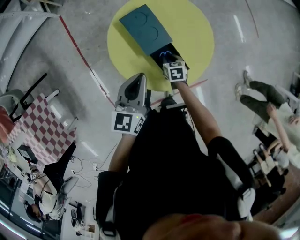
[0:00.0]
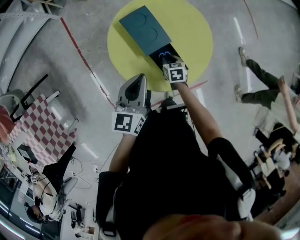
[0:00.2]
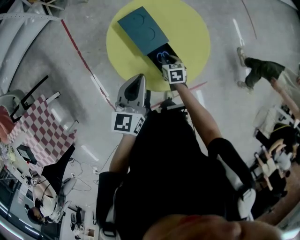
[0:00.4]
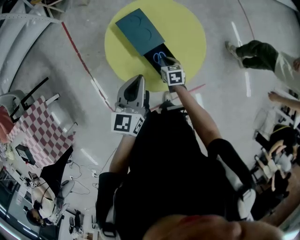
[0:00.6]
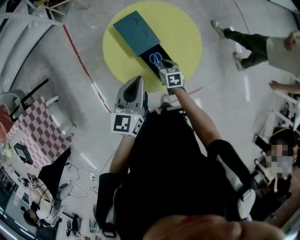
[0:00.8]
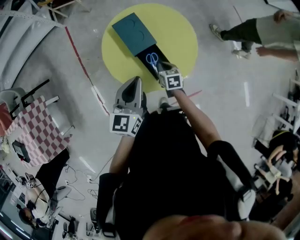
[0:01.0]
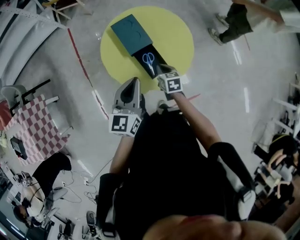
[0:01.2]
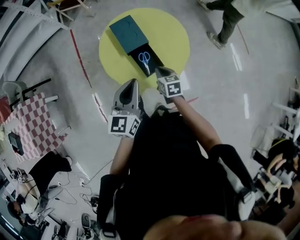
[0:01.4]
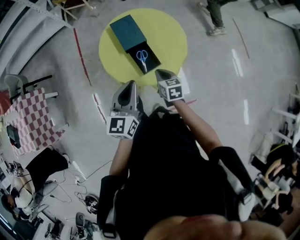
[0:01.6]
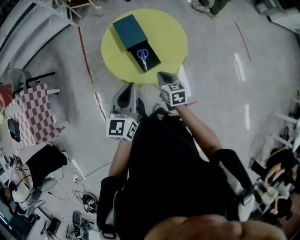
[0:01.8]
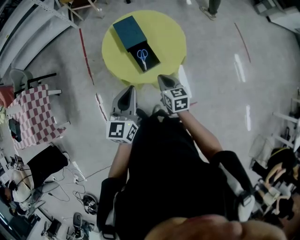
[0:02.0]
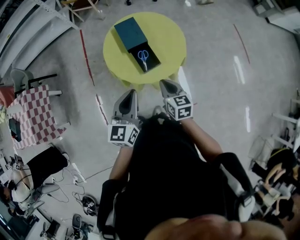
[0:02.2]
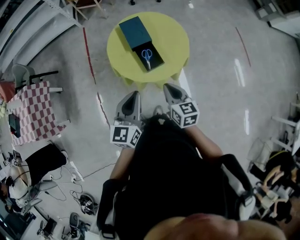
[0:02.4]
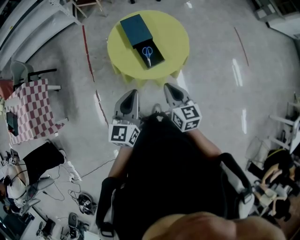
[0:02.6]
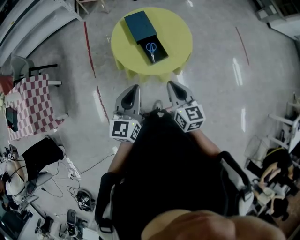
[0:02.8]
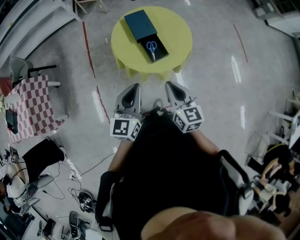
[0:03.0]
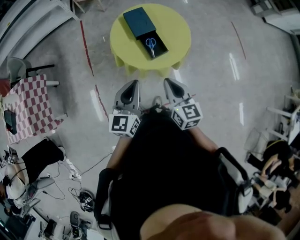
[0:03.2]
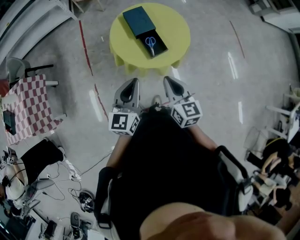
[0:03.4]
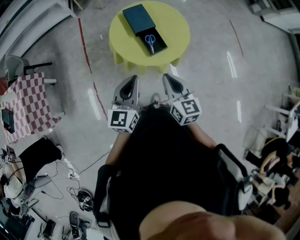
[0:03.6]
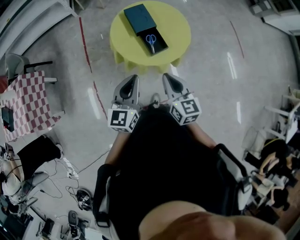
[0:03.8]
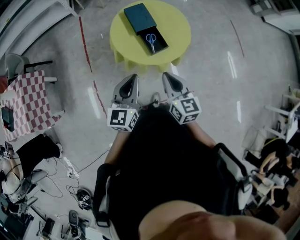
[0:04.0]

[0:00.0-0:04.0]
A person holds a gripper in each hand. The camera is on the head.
0.0 to 1.4 s: The left gripper moves backward, to the right and upward, about 15 cm. Meanwhile the right gripper goes approximately 20 cm upward, backward and to the right.
1.4 to 2.6 s: The right gripper heads upward and backward, covering approximately 25 cm, and swivels roughly 20 degrees, while the left gripper is displaced backward by roughly 15 cm.
2.6 to 4.0 s: The right gripper travels to the left by about 5 cm.

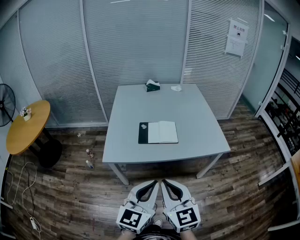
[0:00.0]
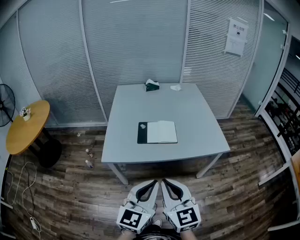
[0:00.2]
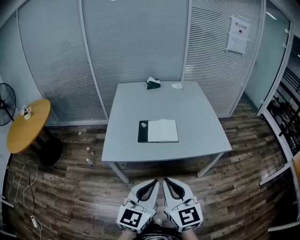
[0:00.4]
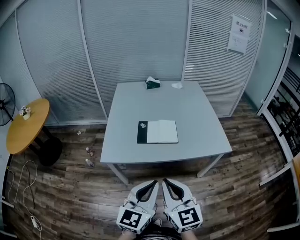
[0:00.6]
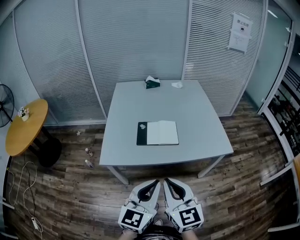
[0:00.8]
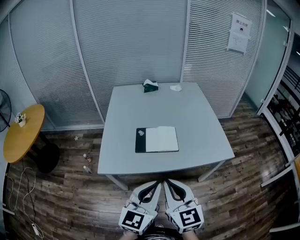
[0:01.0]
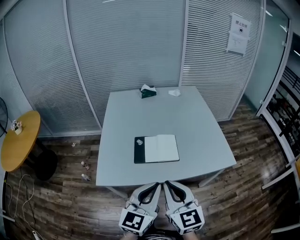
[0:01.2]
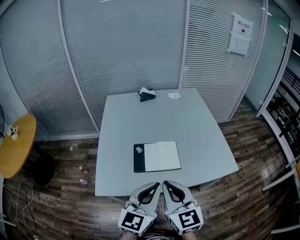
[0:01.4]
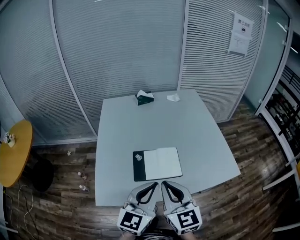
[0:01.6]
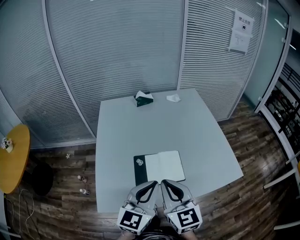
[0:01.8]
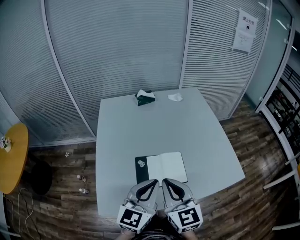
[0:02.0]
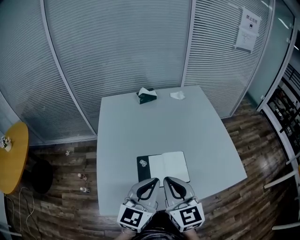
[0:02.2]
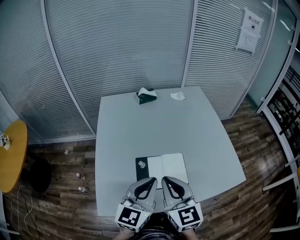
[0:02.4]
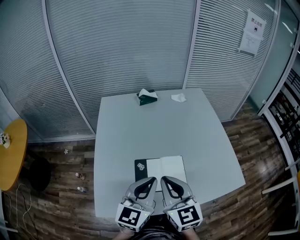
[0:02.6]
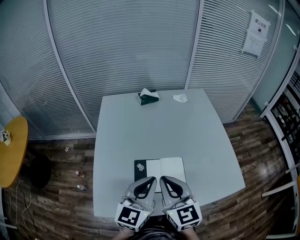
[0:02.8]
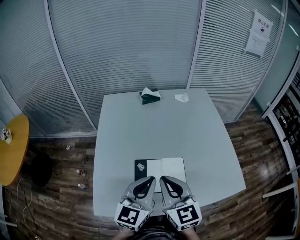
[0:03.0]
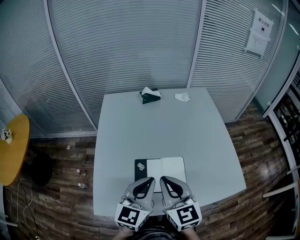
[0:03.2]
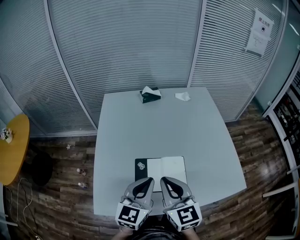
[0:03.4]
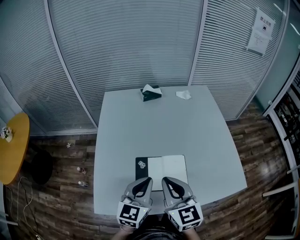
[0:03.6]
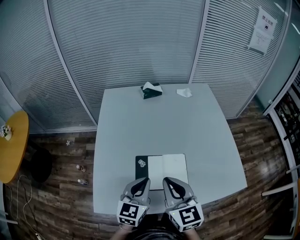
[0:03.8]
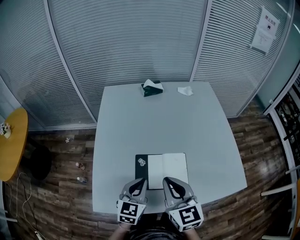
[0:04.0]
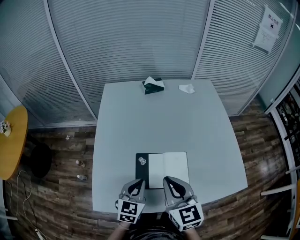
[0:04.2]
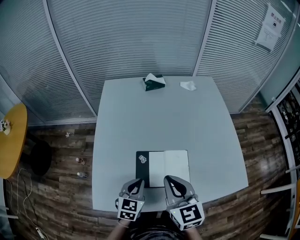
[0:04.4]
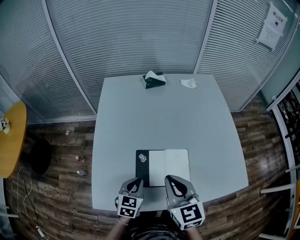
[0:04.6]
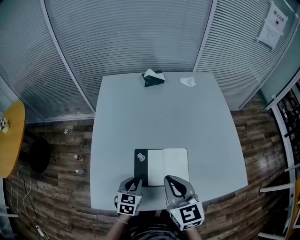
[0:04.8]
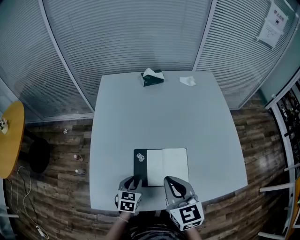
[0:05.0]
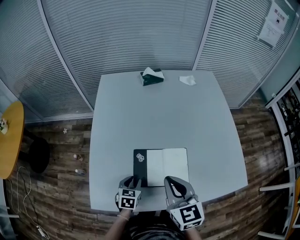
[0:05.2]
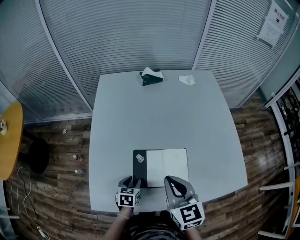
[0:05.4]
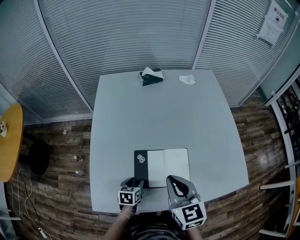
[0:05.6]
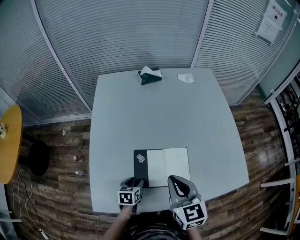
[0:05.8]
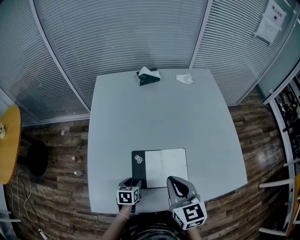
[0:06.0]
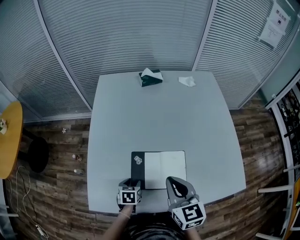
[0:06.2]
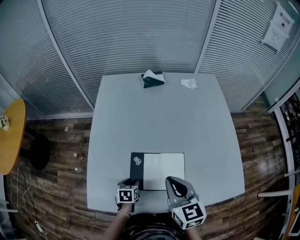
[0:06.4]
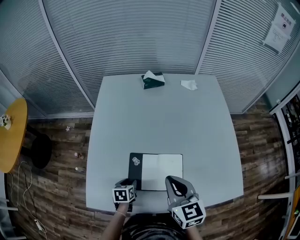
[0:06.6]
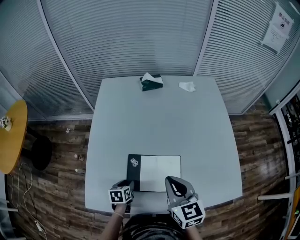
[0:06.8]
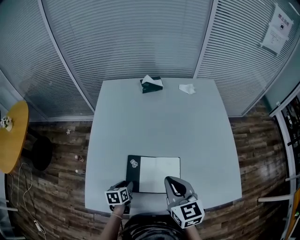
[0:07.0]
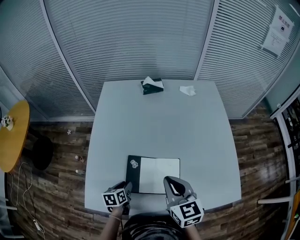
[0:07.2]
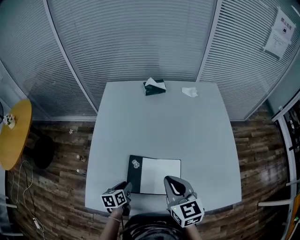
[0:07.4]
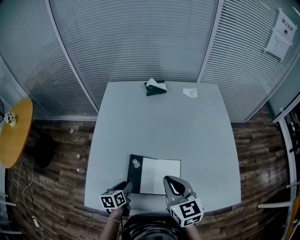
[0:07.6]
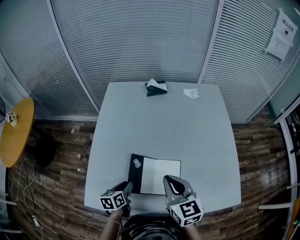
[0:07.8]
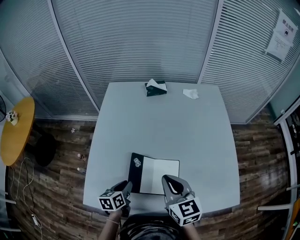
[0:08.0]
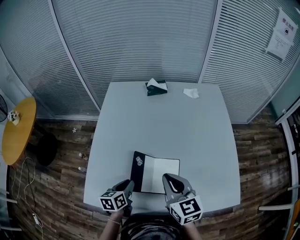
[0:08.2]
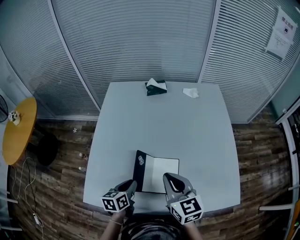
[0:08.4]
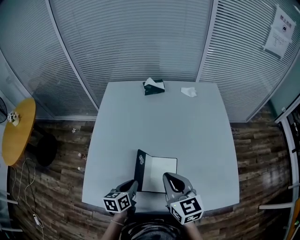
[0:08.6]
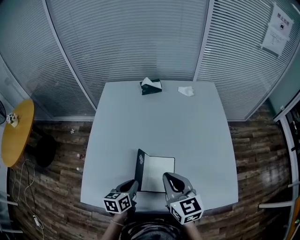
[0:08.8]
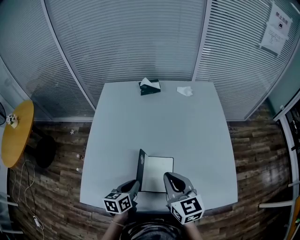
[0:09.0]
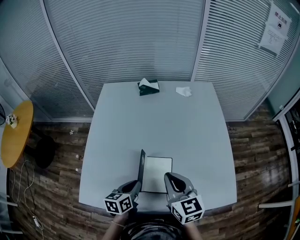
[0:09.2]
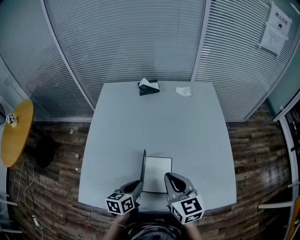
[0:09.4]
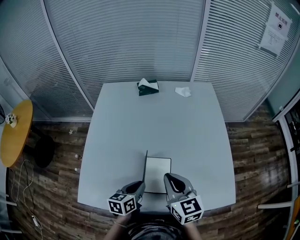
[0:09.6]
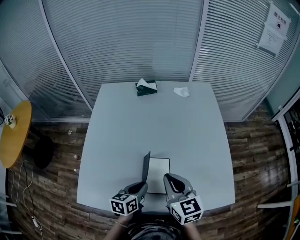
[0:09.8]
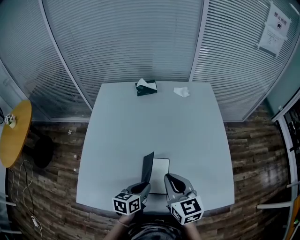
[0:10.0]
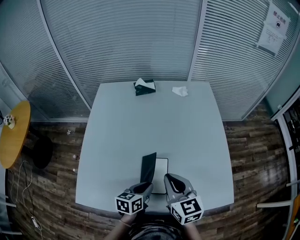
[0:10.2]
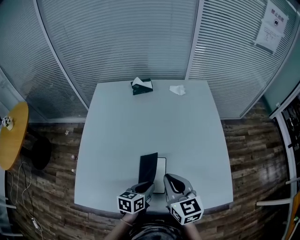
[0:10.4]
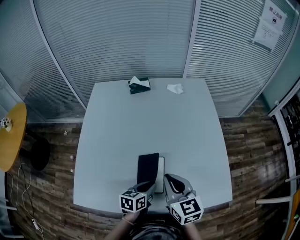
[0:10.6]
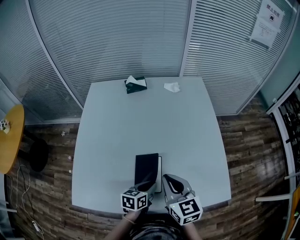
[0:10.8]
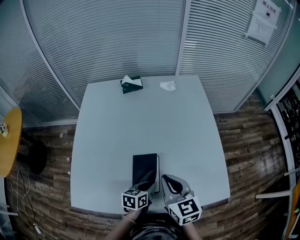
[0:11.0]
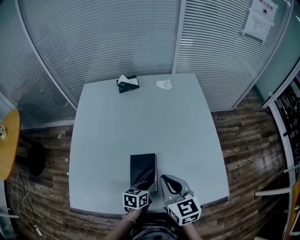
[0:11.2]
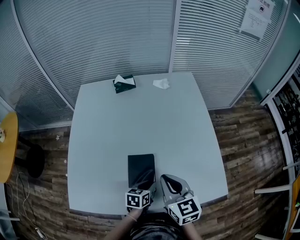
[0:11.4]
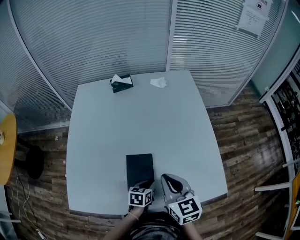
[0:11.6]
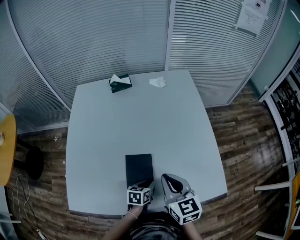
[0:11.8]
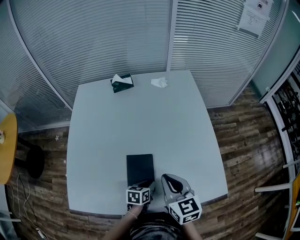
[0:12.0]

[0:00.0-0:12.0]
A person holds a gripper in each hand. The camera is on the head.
0.0 to 1.6 s: The grippers both shift forward by approximately 30 cm.
1.6 to 3.0 s: The grippers both shift forward by approximately 15 cm.
3.0 to 4.4 s: The left gripper heads downward, covering some 20 cm, and rotates about 30 degrees.
4.4 to 6.0 s: The left gripper shifts roughly 15 cm downward, changes its angle by some 30 degrees, and opens.
6.0 to 7.6 s: The left gripper moves upward, roughly 5 cm, and rotates approximately 20 degrees, while the right gripper ends up about 5 cm from where it was.
7.6 to 9.0 s: The left gripper travels to the right and upward by some 10 cm, and closes up. Meanwhile the right gripper goes approximately 5 cm to the right.
9.0 to 10.4 s: The left gripper travels to the right by some 10 cm.
10.4 to 12.0 s: The left gripper shifts approximately 10 cm downward and to the right, while the right gripper travels to the right by about 5 cm.

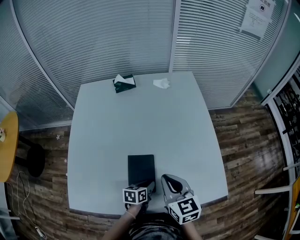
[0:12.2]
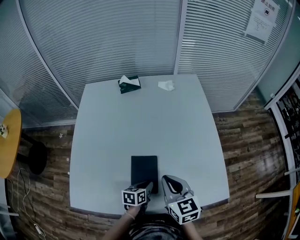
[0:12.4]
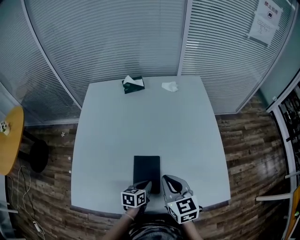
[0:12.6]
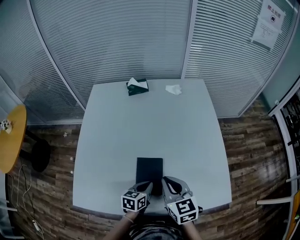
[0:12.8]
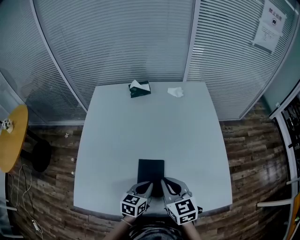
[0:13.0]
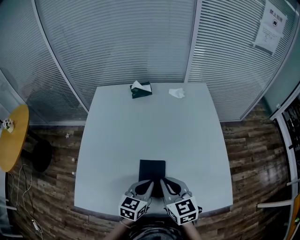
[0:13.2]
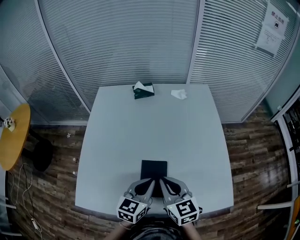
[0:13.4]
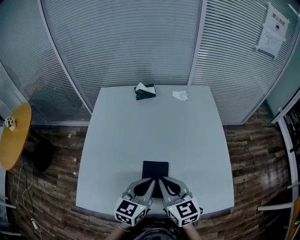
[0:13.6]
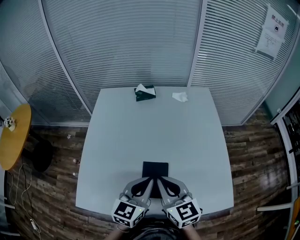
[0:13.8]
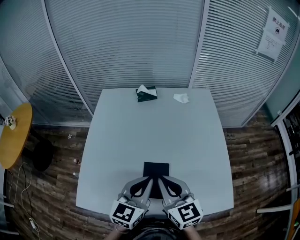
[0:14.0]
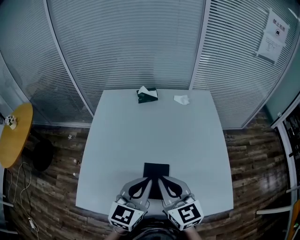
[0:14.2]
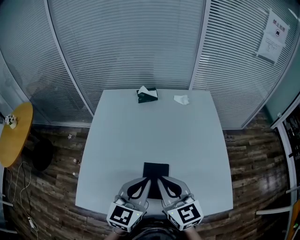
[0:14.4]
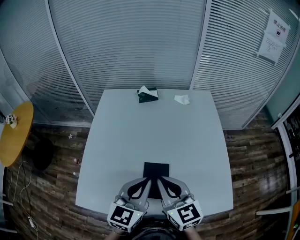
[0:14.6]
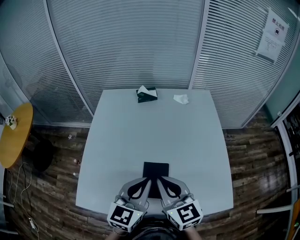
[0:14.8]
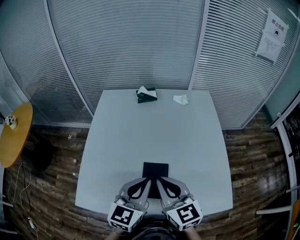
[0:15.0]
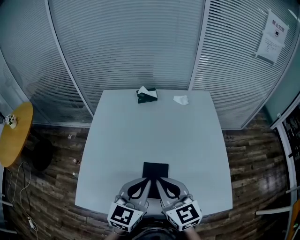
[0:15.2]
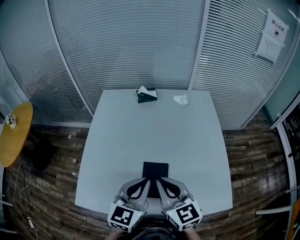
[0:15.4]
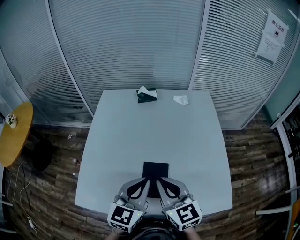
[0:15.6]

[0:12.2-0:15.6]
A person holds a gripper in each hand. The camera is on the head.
12.2 to 13.8 s: The right gripper goes roughly 10 cm to the left and upward; the left gripper heads upward, covering some 25 cm, and changes its angle by approximately 40 degrees.
13.8 to 15.6 s: There are only small adjustments of the grippers.

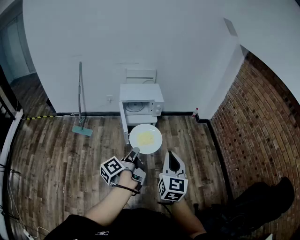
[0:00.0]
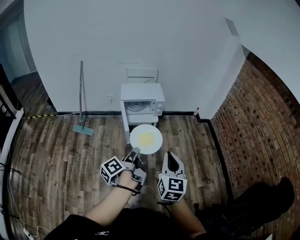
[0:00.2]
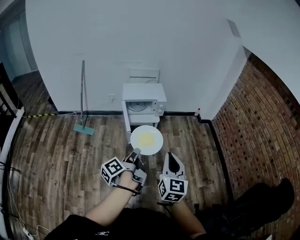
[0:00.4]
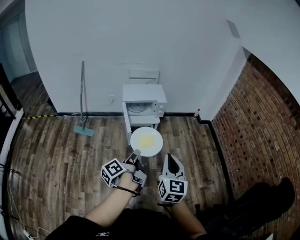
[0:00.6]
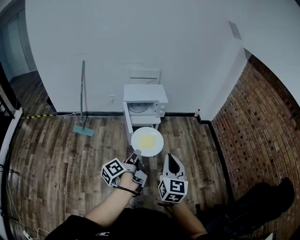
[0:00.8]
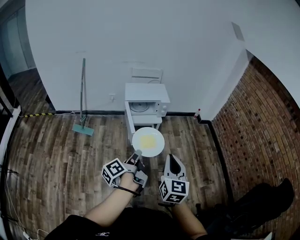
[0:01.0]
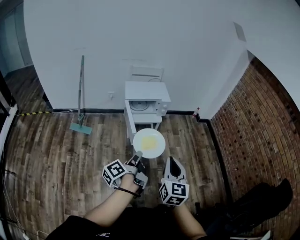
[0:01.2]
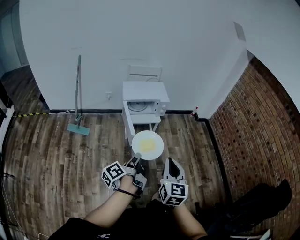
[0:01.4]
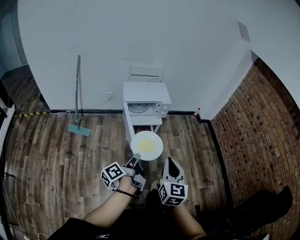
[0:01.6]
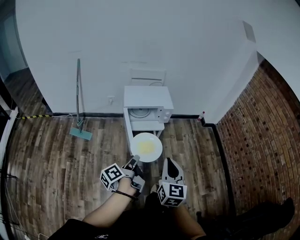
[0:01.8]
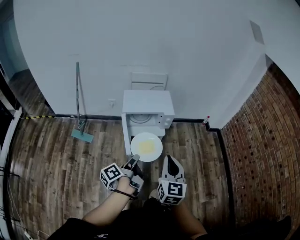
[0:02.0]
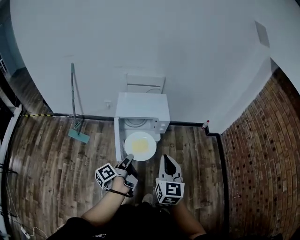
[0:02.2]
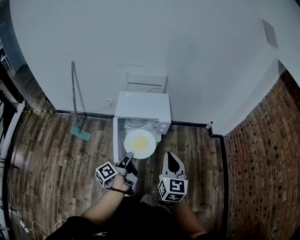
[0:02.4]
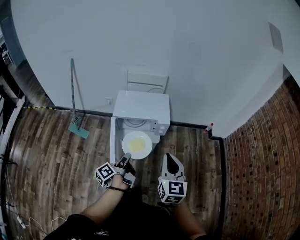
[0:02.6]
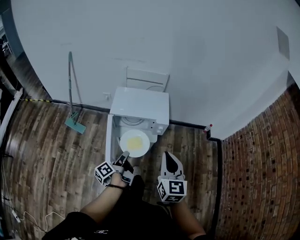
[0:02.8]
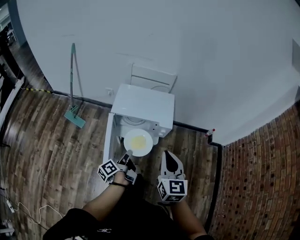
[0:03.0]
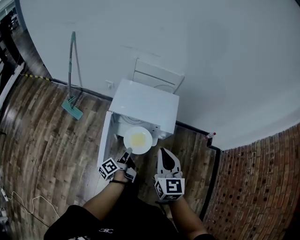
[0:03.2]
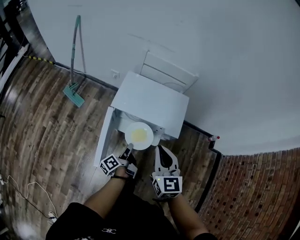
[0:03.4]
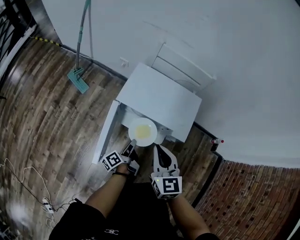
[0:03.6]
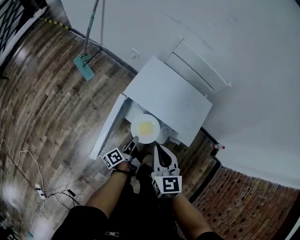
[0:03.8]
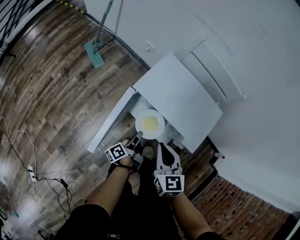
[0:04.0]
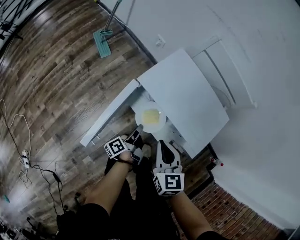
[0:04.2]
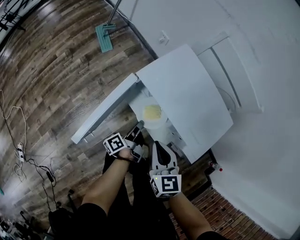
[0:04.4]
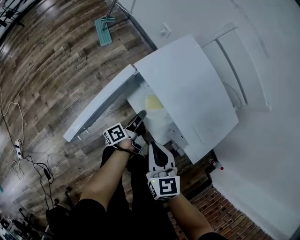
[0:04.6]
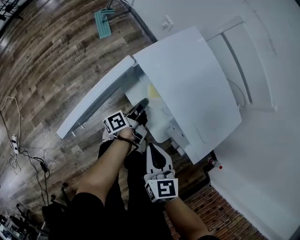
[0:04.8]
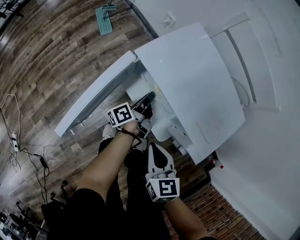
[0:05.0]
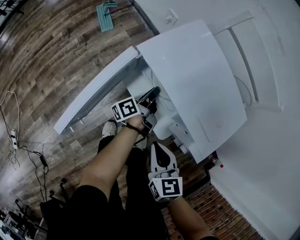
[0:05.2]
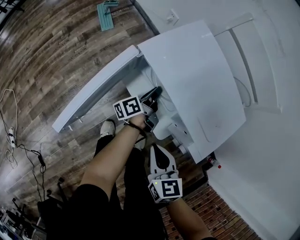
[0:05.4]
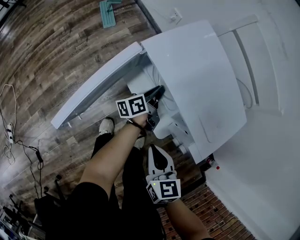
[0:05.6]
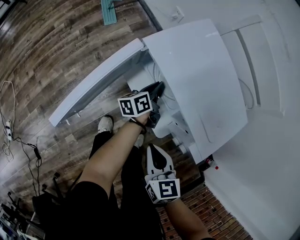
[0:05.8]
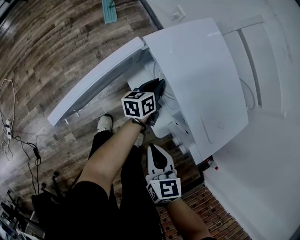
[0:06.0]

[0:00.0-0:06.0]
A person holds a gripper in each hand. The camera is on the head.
0.0 to 1.6 s: The right gripper changes place by some 15 cm.
1.6 to 3.0 s: The right gripper moves some 40 cm, and changes its angle by about 20 degrees.
3.0 to 4.4 s: The right gripper moves downward, about 30 cm, and changes its angle by roughly 50 degrees.
4.4 to 6.0 s: The right gripper moves downward, about 10 cm.
